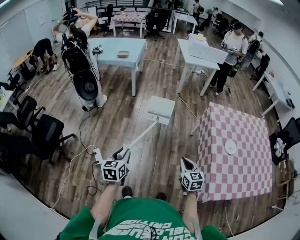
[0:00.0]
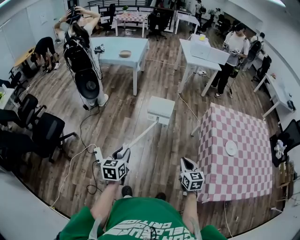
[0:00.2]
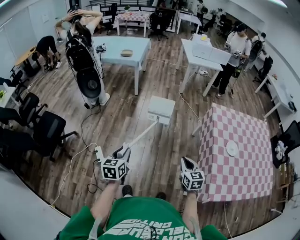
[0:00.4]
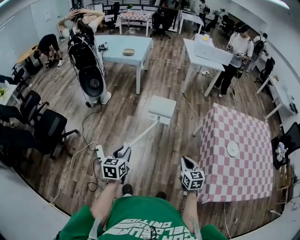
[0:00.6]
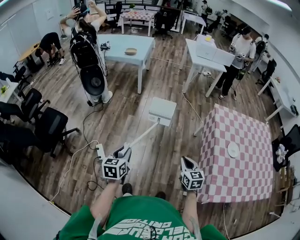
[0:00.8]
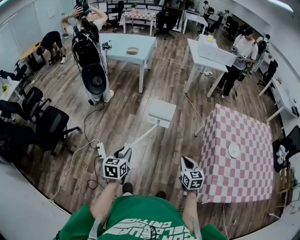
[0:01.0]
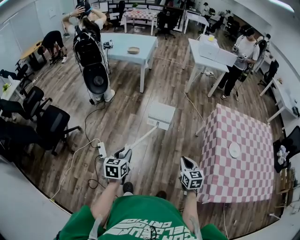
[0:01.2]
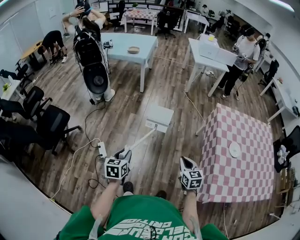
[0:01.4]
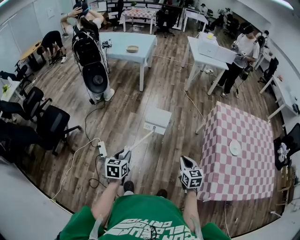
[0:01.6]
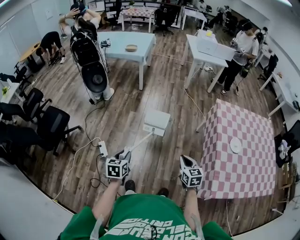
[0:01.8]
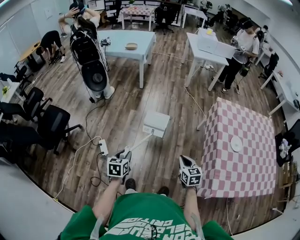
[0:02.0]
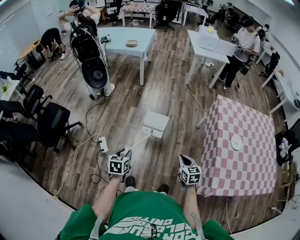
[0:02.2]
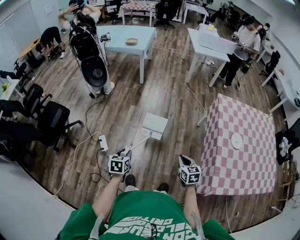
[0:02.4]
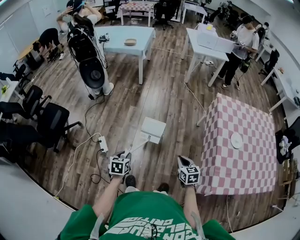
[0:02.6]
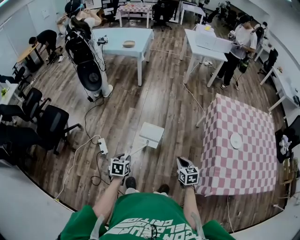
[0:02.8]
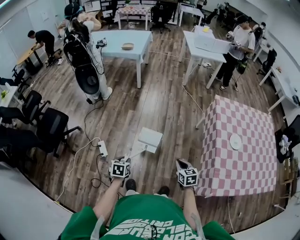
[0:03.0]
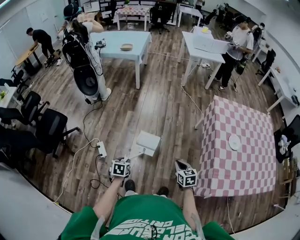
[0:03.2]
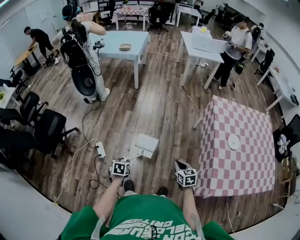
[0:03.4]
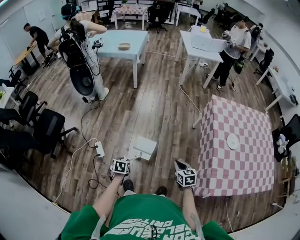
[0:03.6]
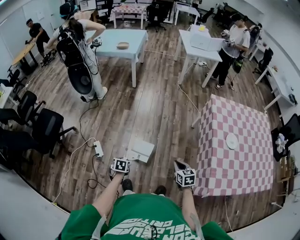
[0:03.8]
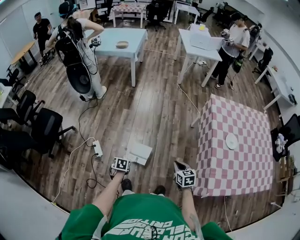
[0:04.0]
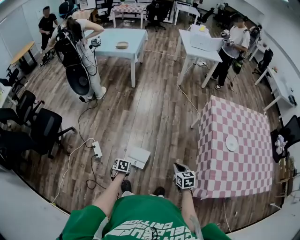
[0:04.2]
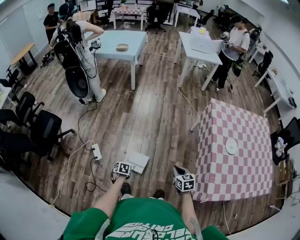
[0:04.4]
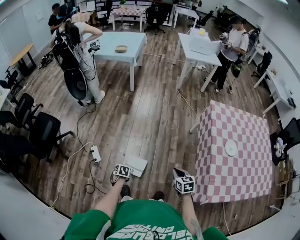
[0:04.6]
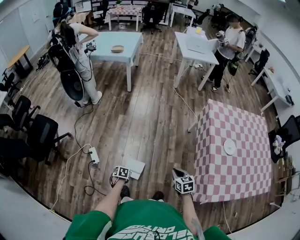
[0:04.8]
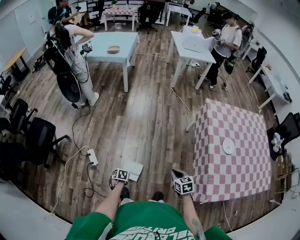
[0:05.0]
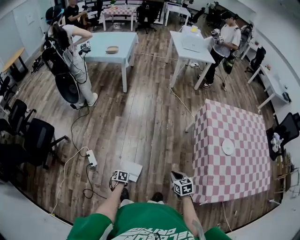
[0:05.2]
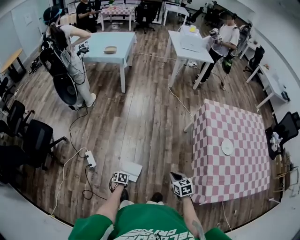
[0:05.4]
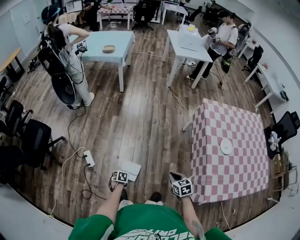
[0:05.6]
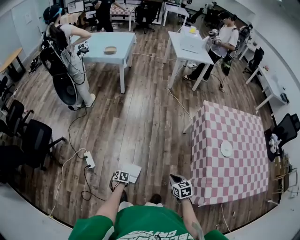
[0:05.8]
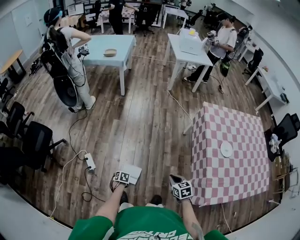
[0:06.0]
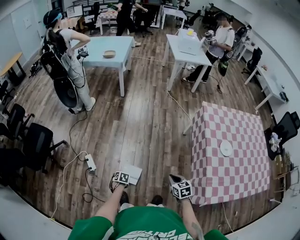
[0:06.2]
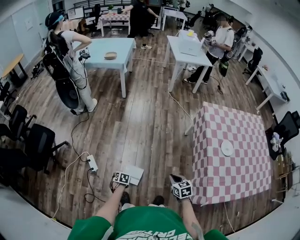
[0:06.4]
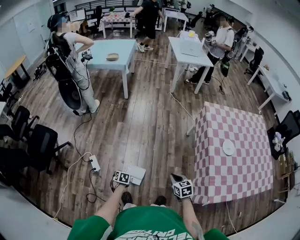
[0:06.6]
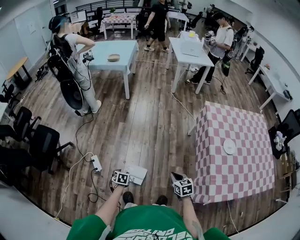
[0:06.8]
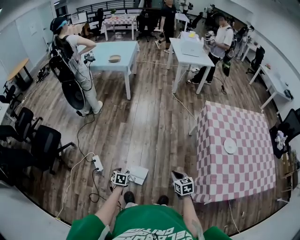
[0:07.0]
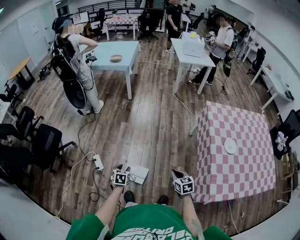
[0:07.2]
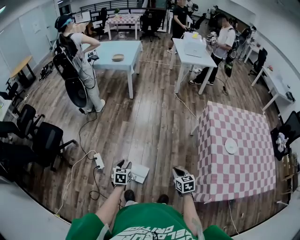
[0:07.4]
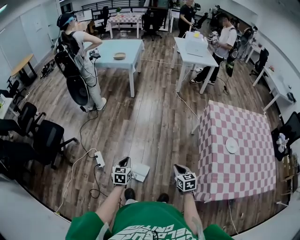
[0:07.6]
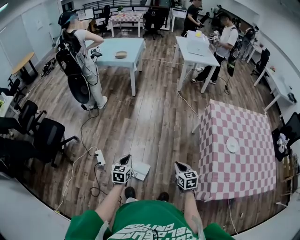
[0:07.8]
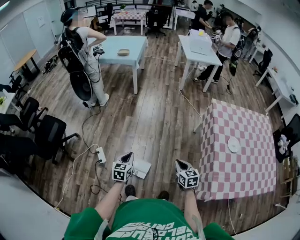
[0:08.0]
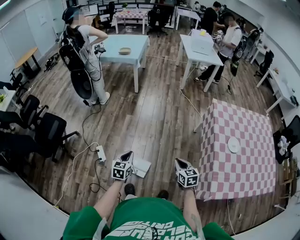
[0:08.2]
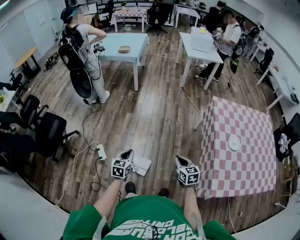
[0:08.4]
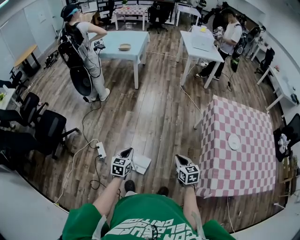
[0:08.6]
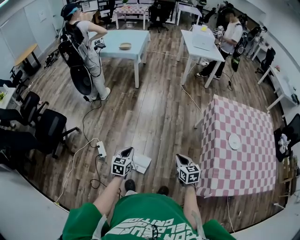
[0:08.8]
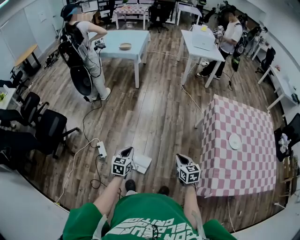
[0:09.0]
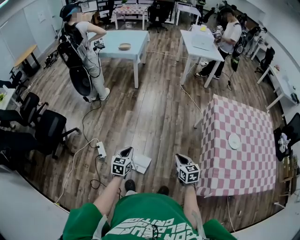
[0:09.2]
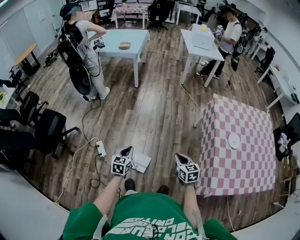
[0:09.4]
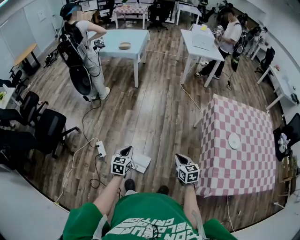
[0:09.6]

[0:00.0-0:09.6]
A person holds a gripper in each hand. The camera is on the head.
0:00.0 to 0:01.6: The left gripper is displaced downward by approximately 5 cm.
0:01.6 to 0:03.2: Both grippers move downward, approximately 10 cm.
0:03.2 to 0:04.8: The left gripper travels downward by approximately 15 cm.
0:04.8 to 0:06.4: The grippers move only a little.
0:06.4 to 0:08.0: The right gripper shifts approximately 5 cm upward, while the left gripper shifts approximately 25 cm upward, angles its fingers upward, by roughly 40 degrees, and closes up.
0:08.0 to 0:09.6: Both grippers stay about where they are.

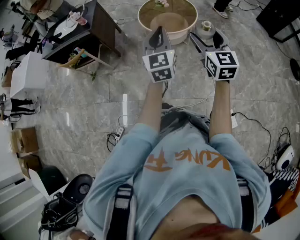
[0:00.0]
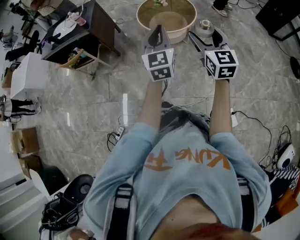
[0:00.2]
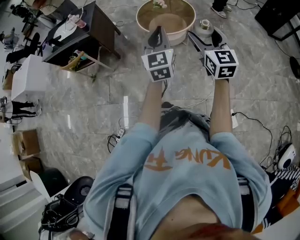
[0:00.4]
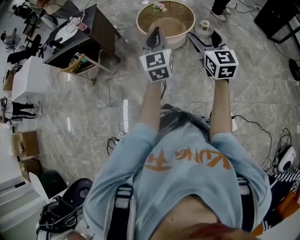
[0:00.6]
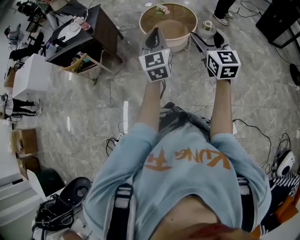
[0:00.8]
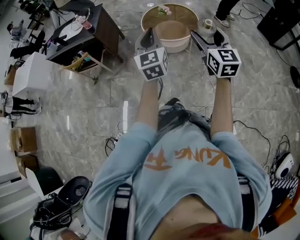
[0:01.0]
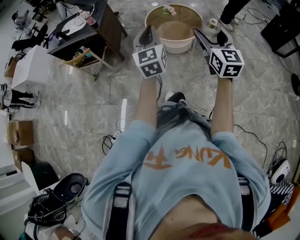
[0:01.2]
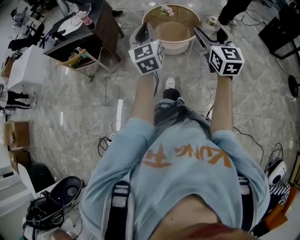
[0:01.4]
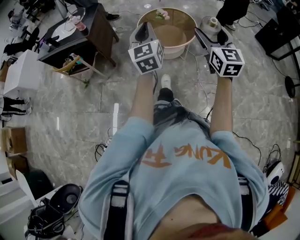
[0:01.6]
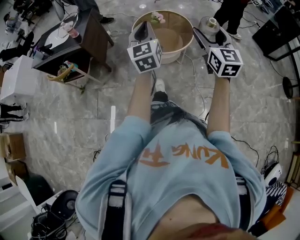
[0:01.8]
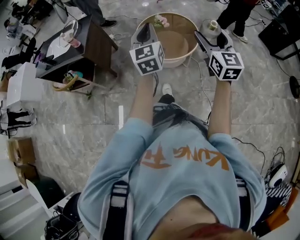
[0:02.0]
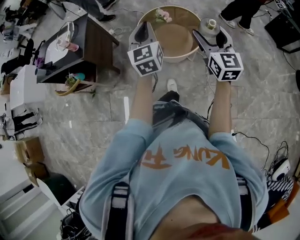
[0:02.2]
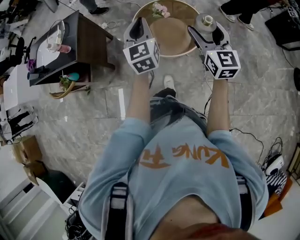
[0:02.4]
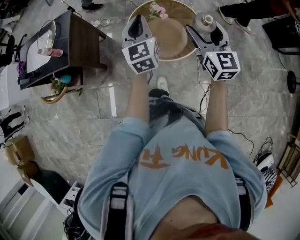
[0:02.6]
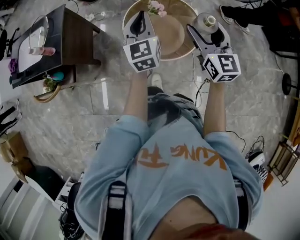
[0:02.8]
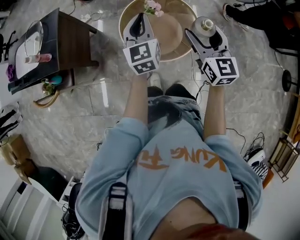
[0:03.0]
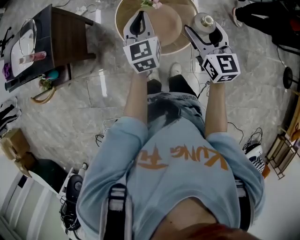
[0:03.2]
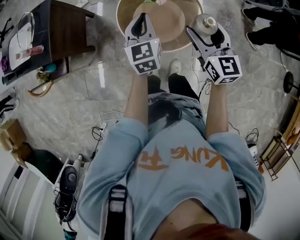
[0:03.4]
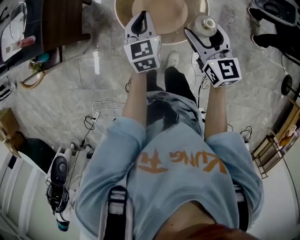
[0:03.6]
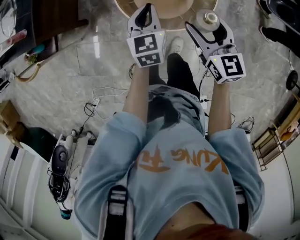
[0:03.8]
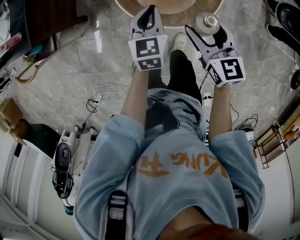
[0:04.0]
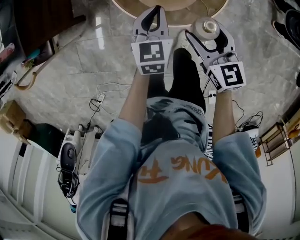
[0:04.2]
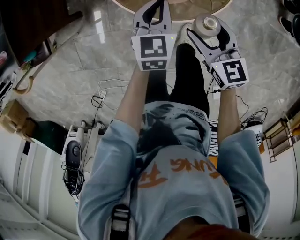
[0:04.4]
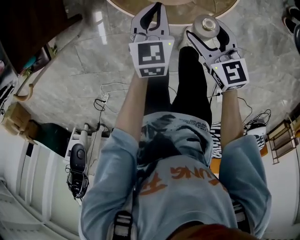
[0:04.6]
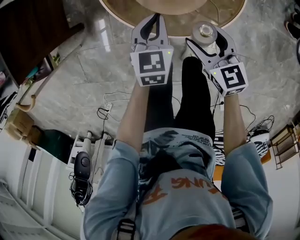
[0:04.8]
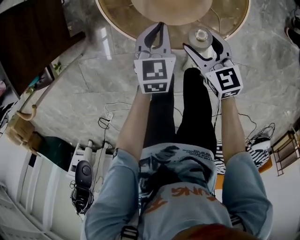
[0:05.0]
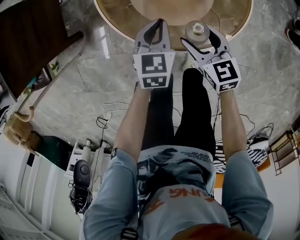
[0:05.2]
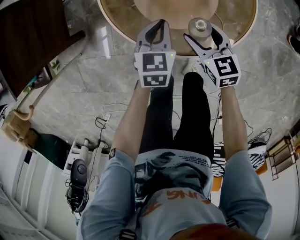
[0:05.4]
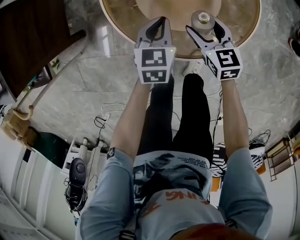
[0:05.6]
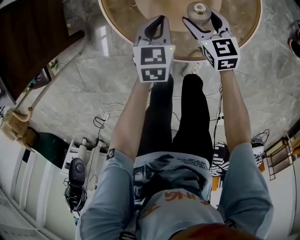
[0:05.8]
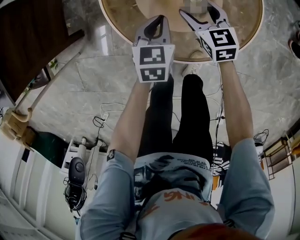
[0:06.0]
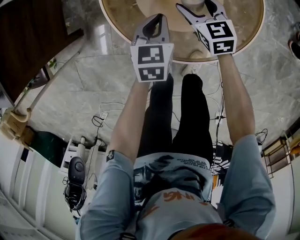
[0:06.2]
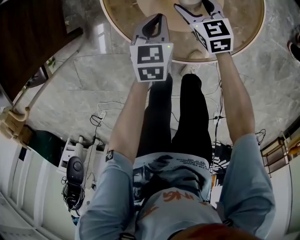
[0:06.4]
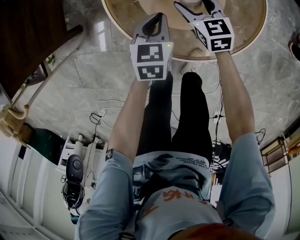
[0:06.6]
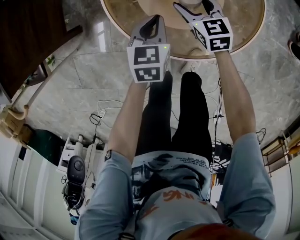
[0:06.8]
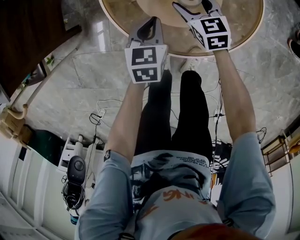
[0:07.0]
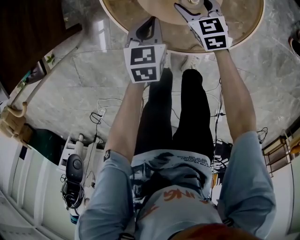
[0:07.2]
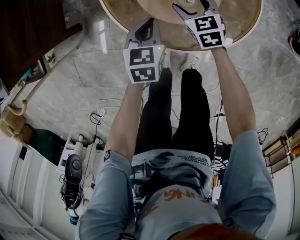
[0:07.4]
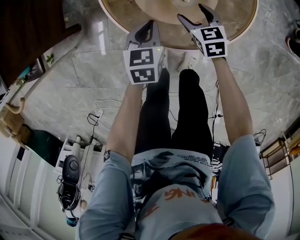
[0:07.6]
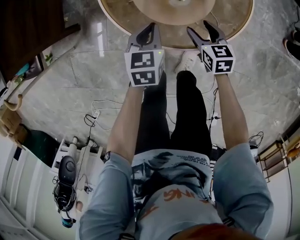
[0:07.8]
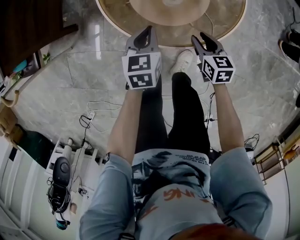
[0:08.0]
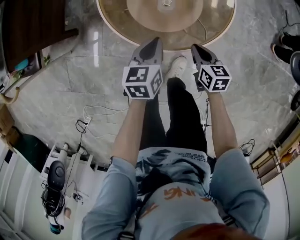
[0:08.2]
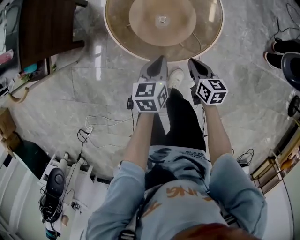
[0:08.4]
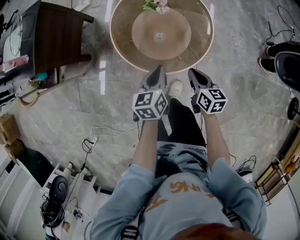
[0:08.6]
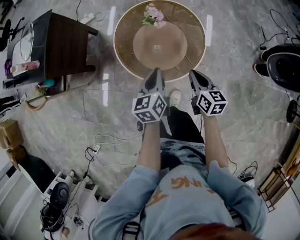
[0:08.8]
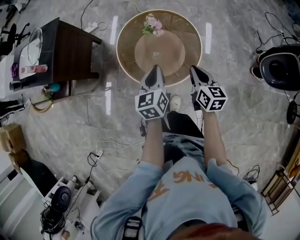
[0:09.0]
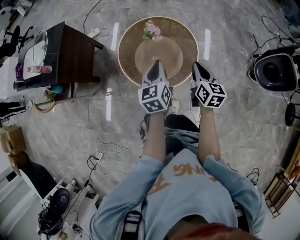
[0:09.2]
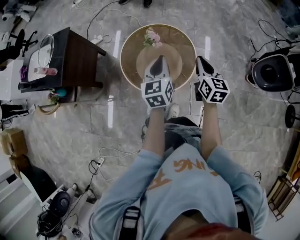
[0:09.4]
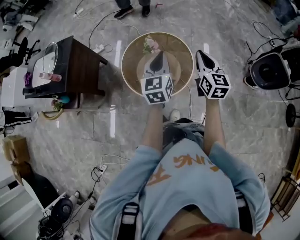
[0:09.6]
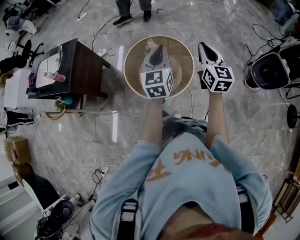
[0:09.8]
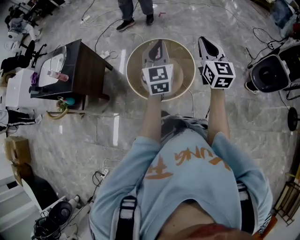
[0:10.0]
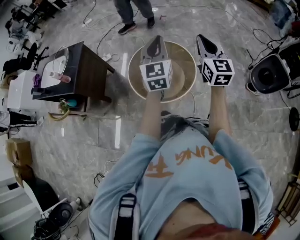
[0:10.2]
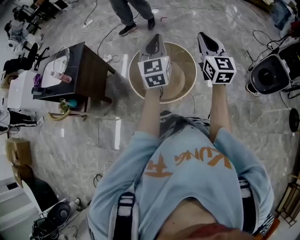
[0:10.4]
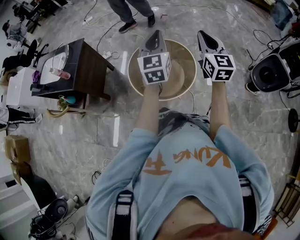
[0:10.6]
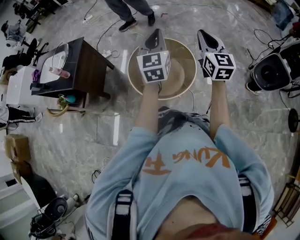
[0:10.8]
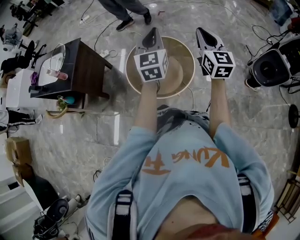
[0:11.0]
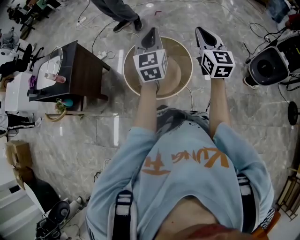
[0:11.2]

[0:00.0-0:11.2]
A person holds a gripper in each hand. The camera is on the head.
0:00.0 to 0:01.6: The grippers both shift forward by about 10 cm.
0:01.6 to 0:03.2: Both grippers are carried forward, about 50 cm.
0:03.2 to 0:04.8: The two grippers go some 40 cm downward. The left gripper turns by roughly 30 degrees. The right gripper changes its angle by approximately 30 degrees.
0:04.8 to 0:06.4: The left gripper shifts about 10 cm downward and forward. Meanwhile the right gripper travels forward and downward by approximately 25 cm.
0:06.4 to 0:08.0: The right gripper goes about 20 cm backward and to the right, and closes; the left gripper moves backward, about 10 cm.
0:08.0 to 0:09.6: The two grippers go about 50 cm upward. The left gripper tilts its fingers some 30 degrees upward; the right gripper tilts its fingers about 30 degrees upward, and closes.
0:09.6 to 0:11.2: The two grippers go roughly 10 cm upward.

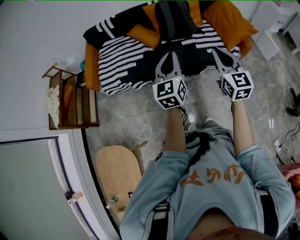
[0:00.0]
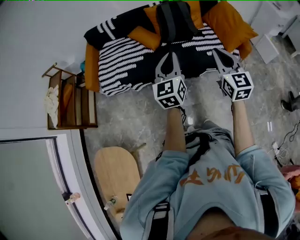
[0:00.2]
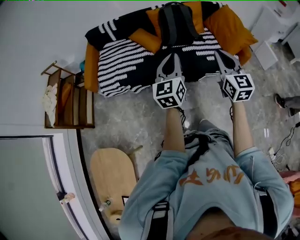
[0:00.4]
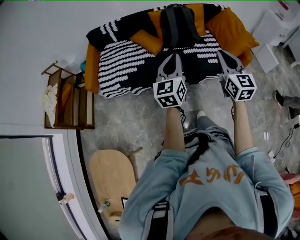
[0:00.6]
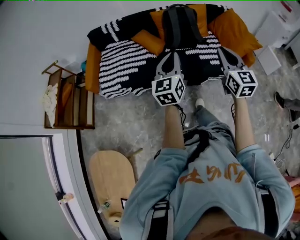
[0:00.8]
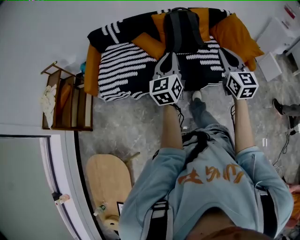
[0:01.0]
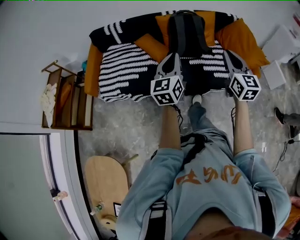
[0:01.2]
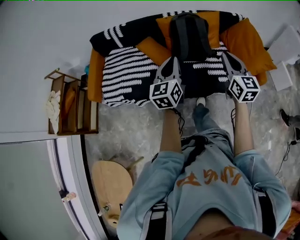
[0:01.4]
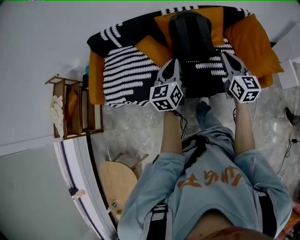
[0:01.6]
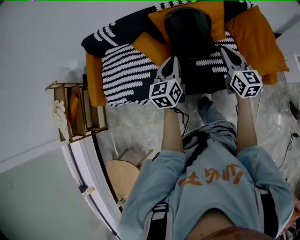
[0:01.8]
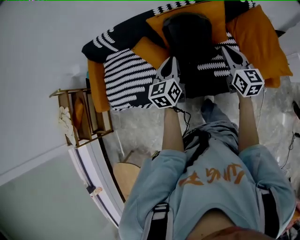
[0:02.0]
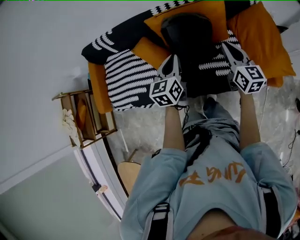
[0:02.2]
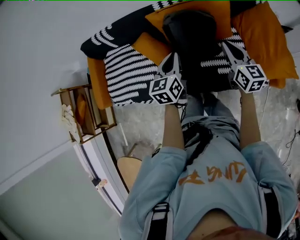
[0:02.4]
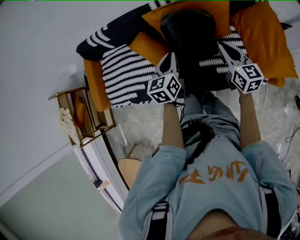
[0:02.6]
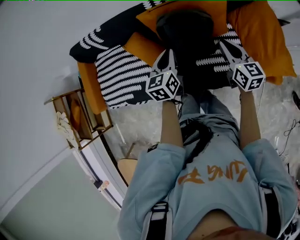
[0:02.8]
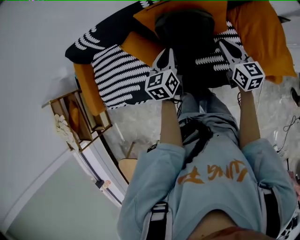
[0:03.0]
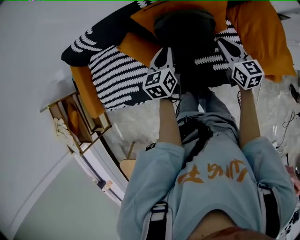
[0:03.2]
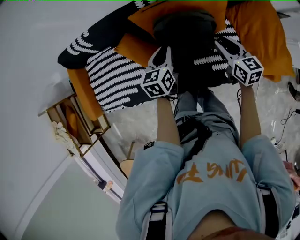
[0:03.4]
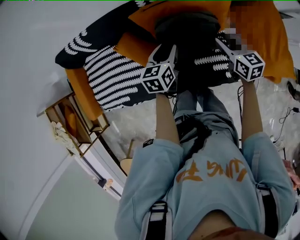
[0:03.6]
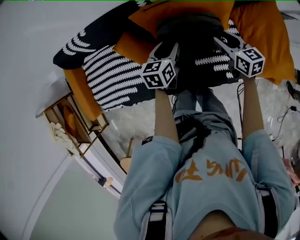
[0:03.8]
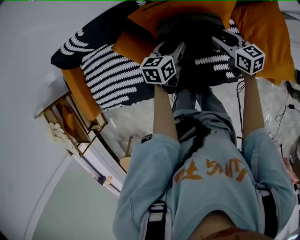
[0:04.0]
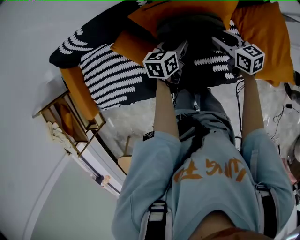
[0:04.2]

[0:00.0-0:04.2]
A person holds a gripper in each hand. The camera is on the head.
0:00.0 to 0:01.4: The two grippers go approximately 25 cm forward.
0:01.4 to 0:02.8: Both grippers move forward and downward, roughly 35 cm. The left gripper rotates approximately 20 degrees; the right gripper turns by approximately 20 degrees.
0:02.8 to 0:04.2: Both grippers move forward and downward, roughly 15 cm. The left gripper swivels about 30 degrees, and opens up; the right gripper turns by some 20 degrees, and opens.
